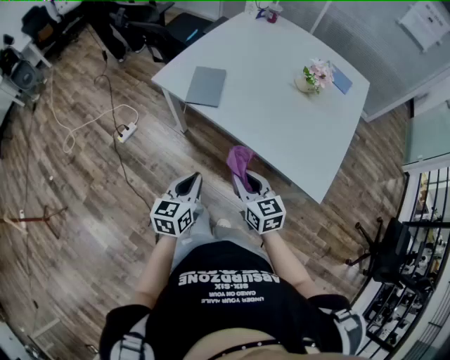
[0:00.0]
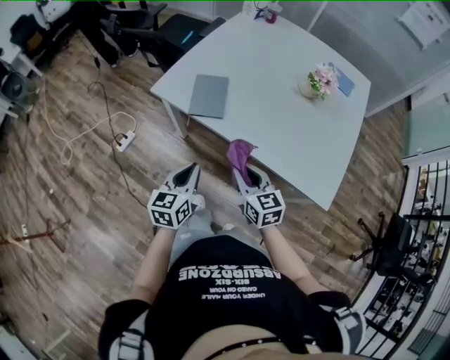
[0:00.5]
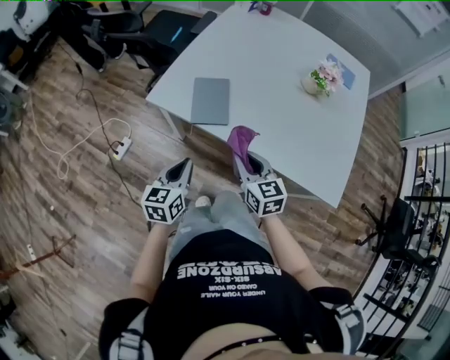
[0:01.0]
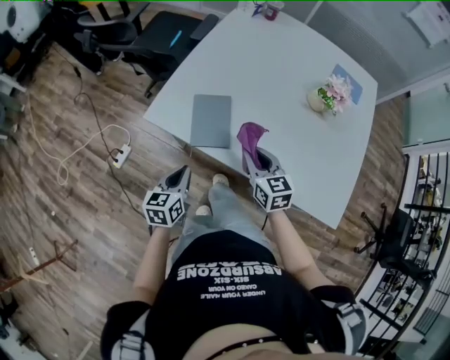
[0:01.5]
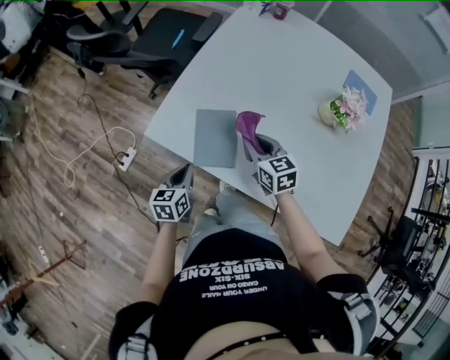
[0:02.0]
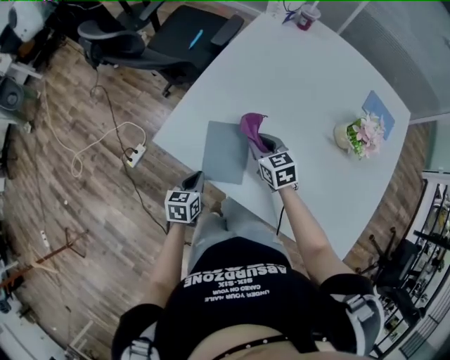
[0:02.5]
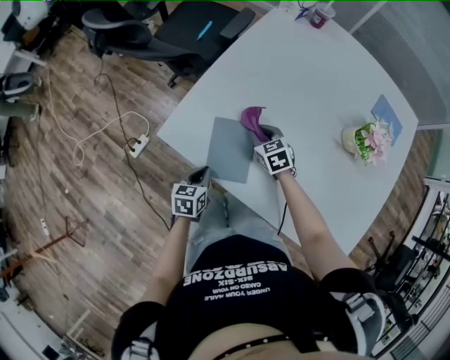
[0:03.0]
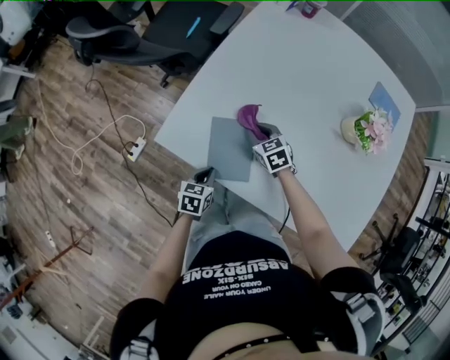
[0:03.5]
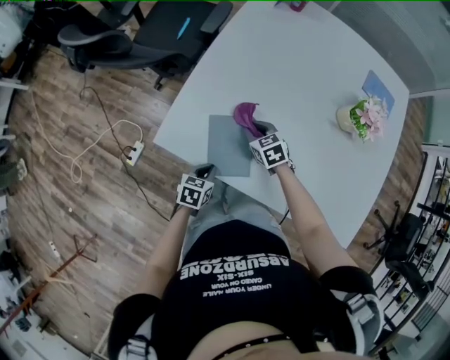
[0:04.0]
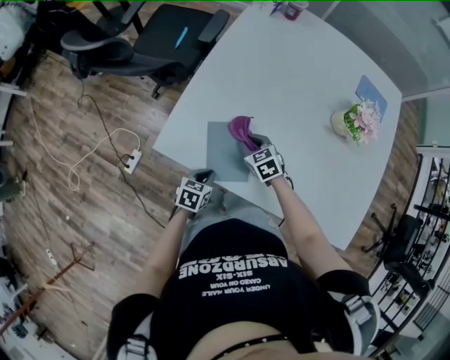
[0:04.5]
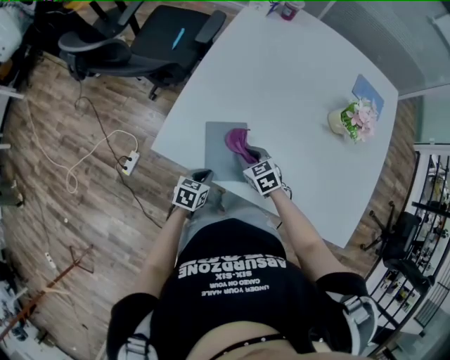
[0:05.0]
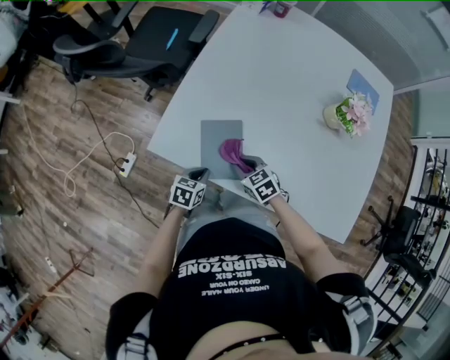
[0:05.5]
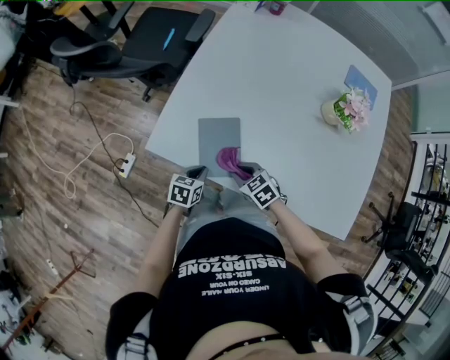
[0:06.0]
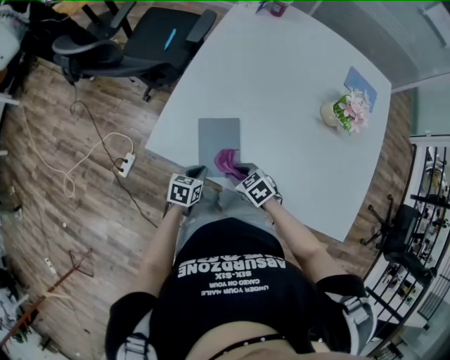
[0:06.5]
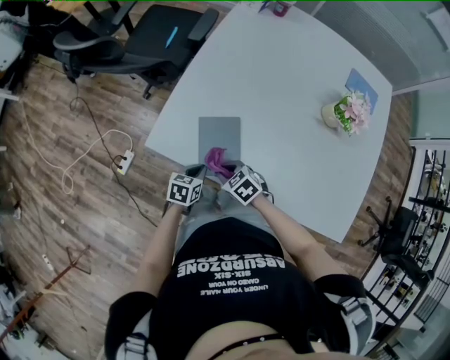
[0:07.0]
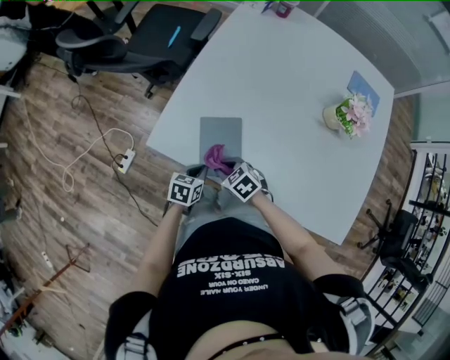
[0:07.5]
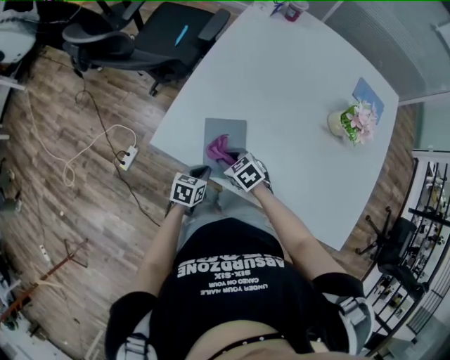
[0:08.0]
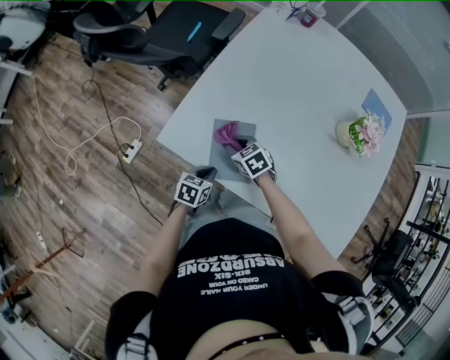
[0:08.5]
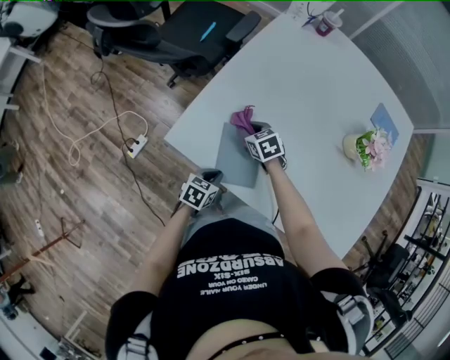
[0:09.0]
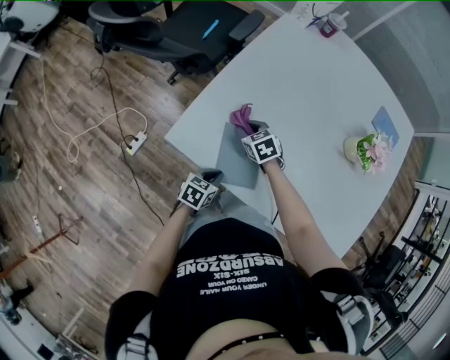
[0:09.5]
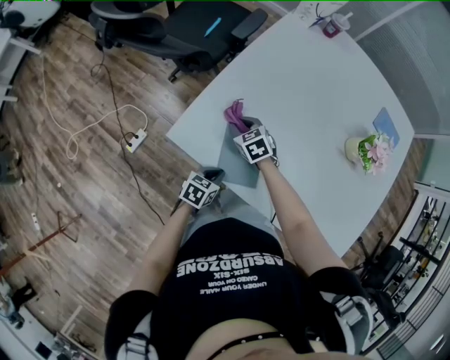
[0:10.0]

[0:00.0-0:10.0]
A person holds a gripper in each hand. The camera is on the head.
0:00.0 to 0:02.0: Both grippers move forward, roughly 40 cm.
0:02.0 to 0:04.0: The right gripper moves downward and forward, roughly 15 cm. The left gripper shifts some 10 cm downward, and turns by roughly 30 degrees.
0:04.0 to 0:06.0: The right gripper travels backward by some 15 cm.
0:06.0 to 0:08.0: The right gripper goes some 10 cm forward and to the left.
0:08.0 to 0:10.0: The right gripper heads forward, covering about 15 cm.

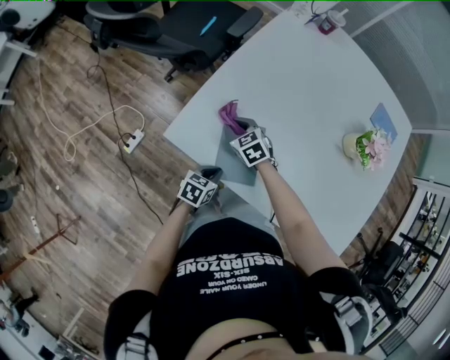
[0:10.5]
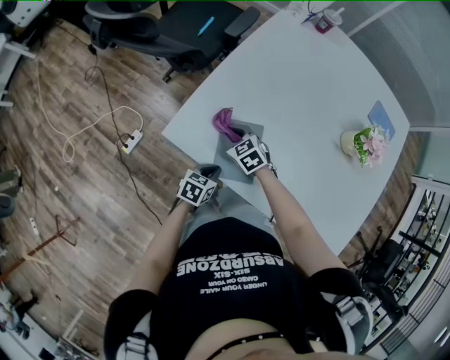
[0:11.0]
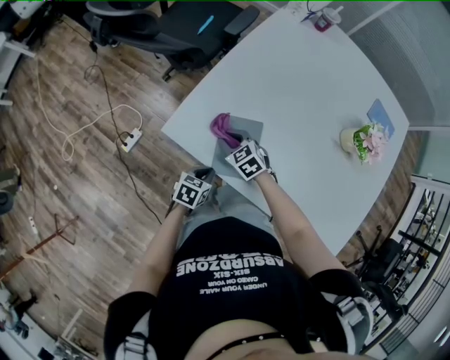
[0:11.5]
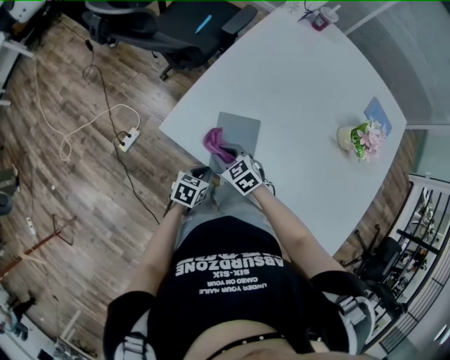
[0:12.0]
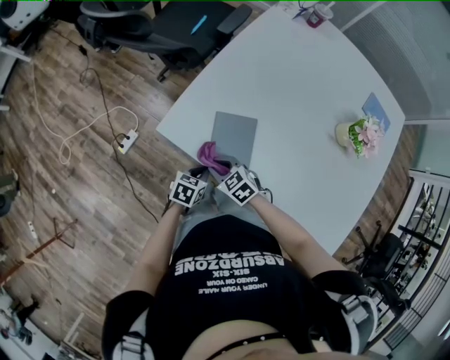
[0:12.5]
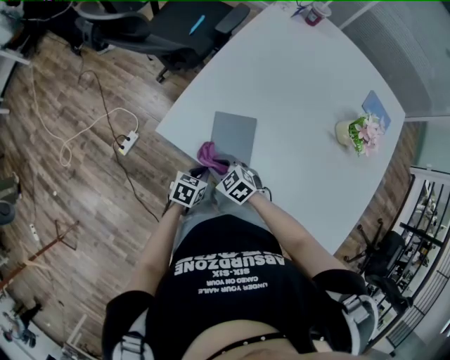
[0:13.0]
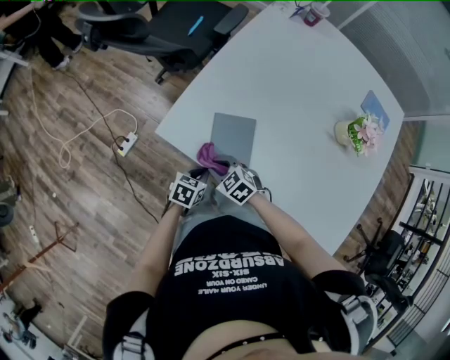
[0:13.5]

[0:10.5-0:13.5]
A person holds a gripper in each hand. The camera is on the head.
0:10.5 to 0:12.0: The right gripper goes roughly 15 cm backward.
0:12.0 to 0:13.5: There are only small adjustments of the grippers.

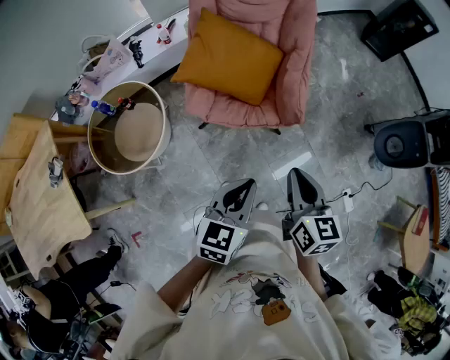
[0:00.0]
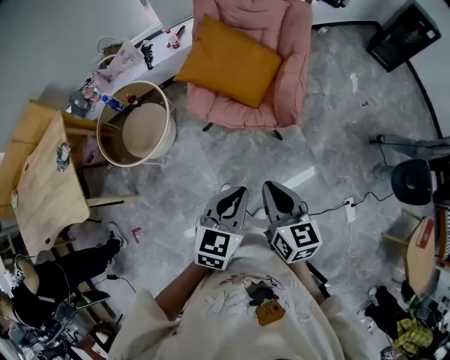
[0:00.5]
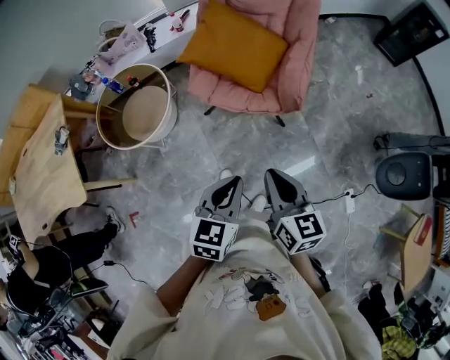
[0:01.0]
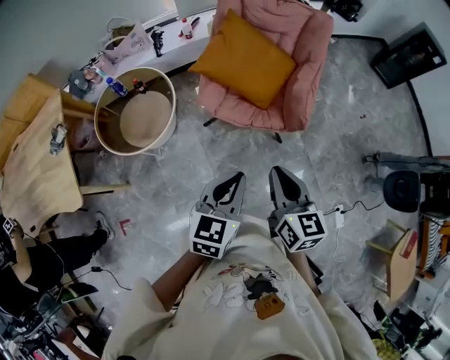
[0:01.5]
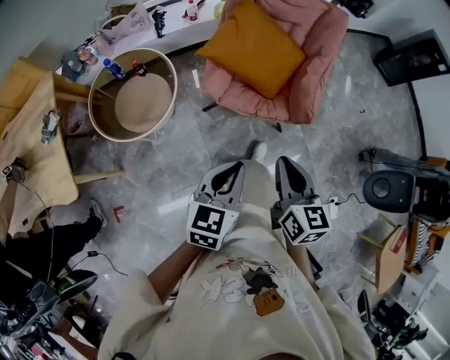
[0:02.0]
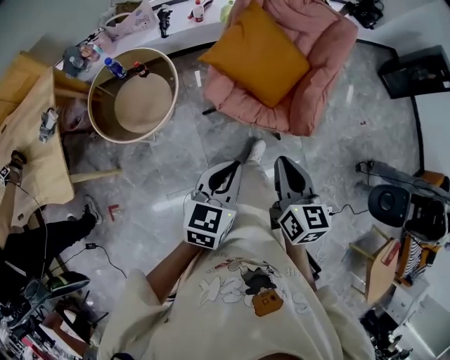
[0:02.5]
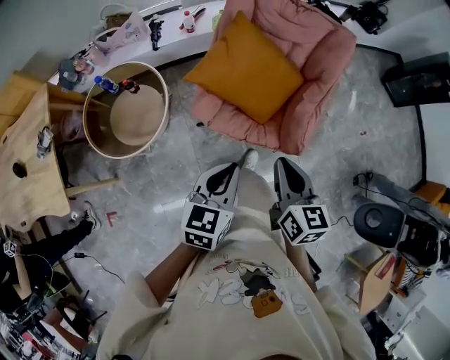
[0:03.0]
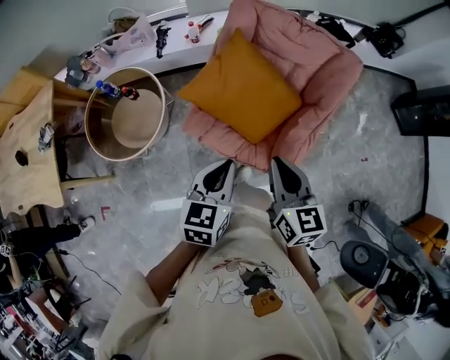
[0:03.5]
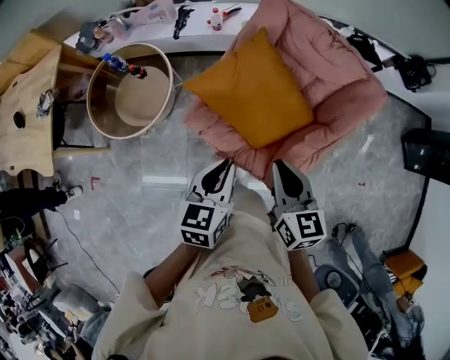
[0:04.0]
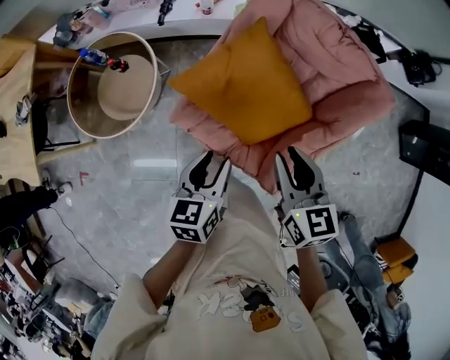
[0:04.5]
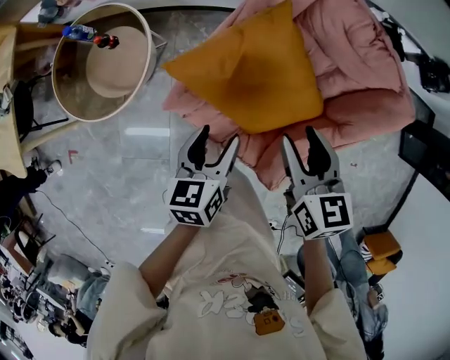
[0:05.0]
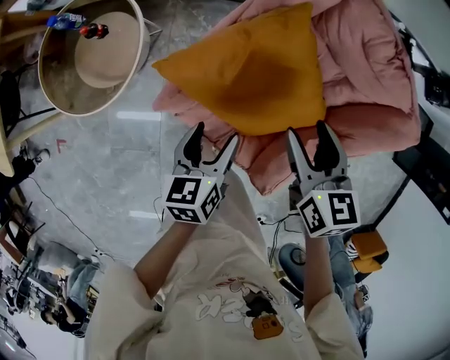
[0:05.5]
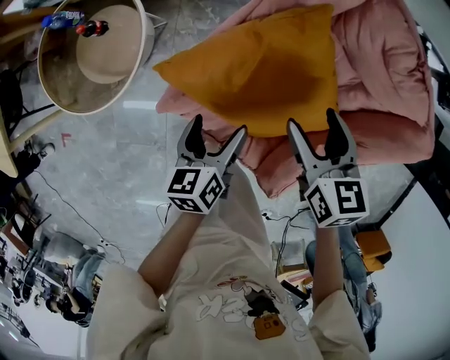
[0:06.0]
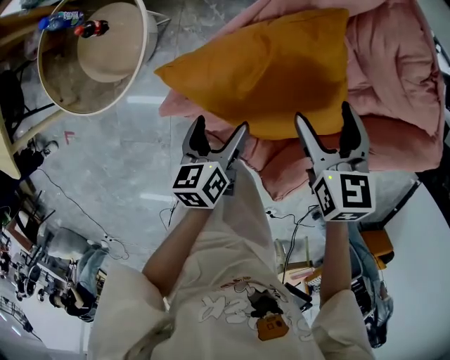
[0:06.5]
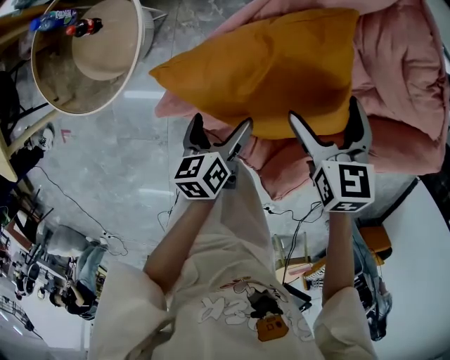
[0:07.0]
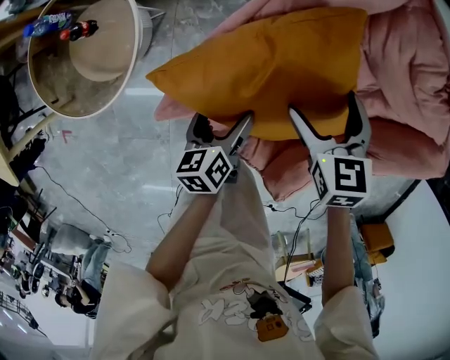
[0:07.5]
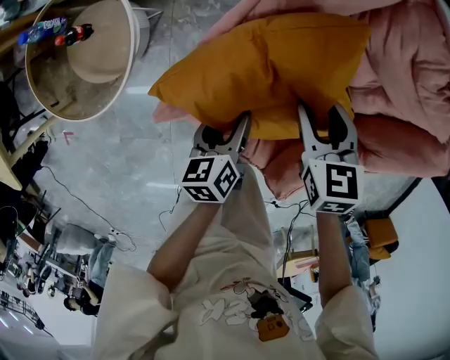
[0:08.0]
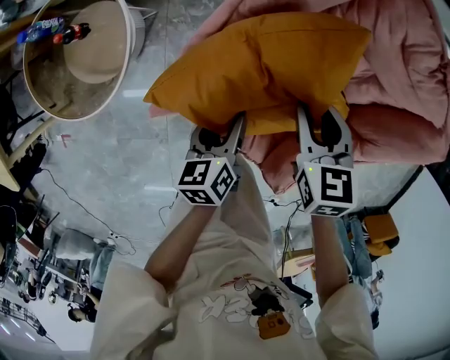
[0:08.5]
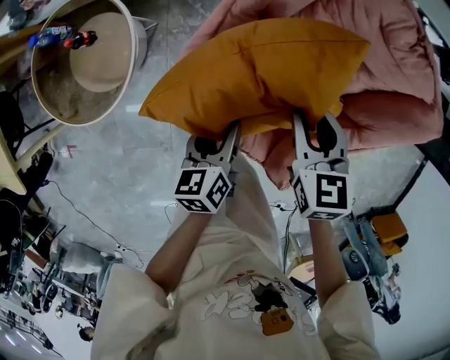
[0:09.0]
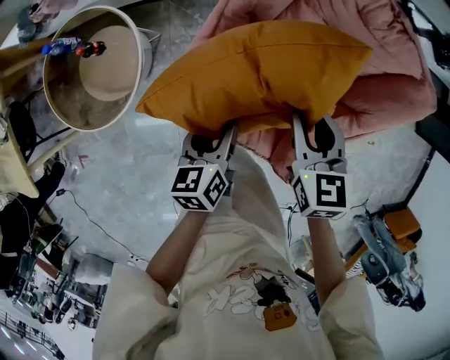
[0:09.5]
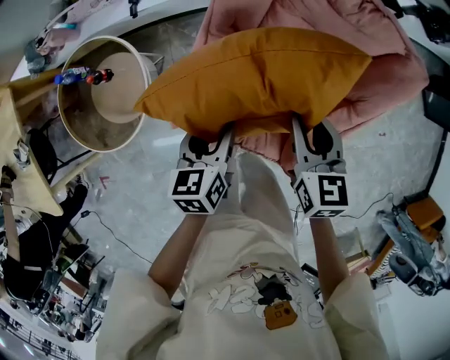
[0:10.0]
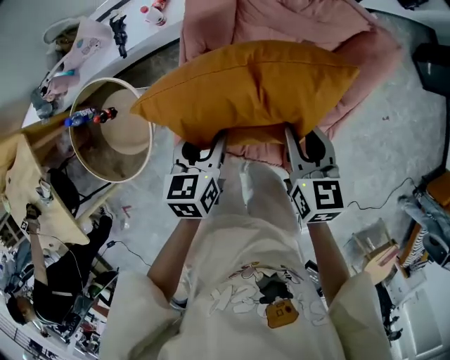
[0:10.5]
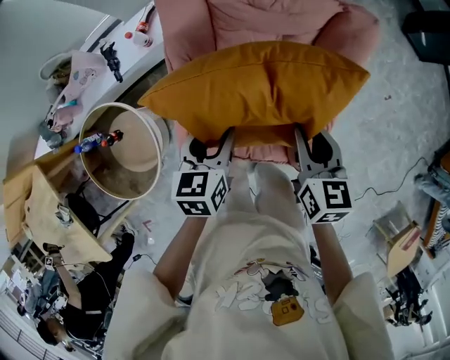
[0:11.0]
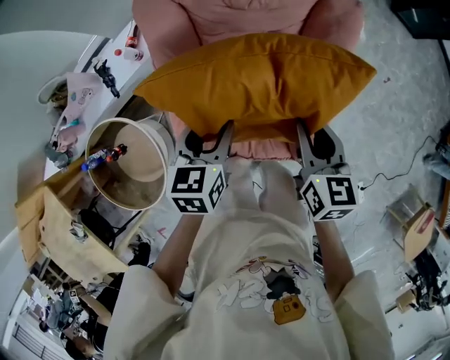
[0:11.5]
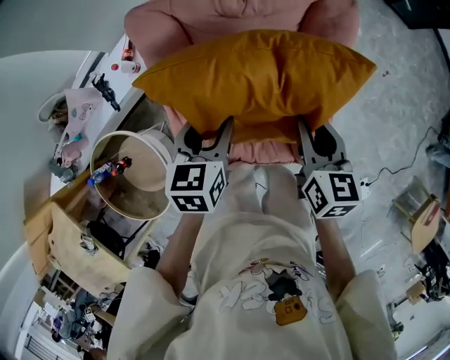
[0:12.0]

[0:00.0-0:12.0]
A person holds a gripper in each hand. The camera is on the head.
0:00.0 to 0:02.0: Both grippers travel together to the left, some 10 cm.
0:02.0 to 0:04.0: The right gripper shifts by some 40 cm, and rotates approximately 30 degrees. The left gripper moves some 35 cm, and changes its angle by some 30 degrees.
0:04.0 to 0:06.0: The left gripper is displaced downward and forward by some 30 cm, swivels approximately 30 degrees, and opens. The right gripper moves forward and downward, some 35 cm, rotates approximately 20 degrees, and opens up.
0:06.0 to 0:08.0: The grippers both shift downward by some 10 cm. The right gripper opens and closes again.
0:08.0 to 0:10.0: The right gripper shifts roughly 20 cm upward and backward, and rotates approximately 30 degrees, while the left gripper shifts approximately 20 cm upward, and turns by roughly 30 degrees.
0:10.0 to 0:12.0: The left gripper shifts by approximately 20 cm, and rotates some 40 degrees, while the right gripper changes place by some 15 cm, and turns by about 40 degrees.

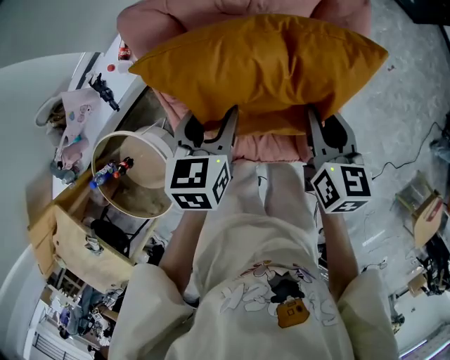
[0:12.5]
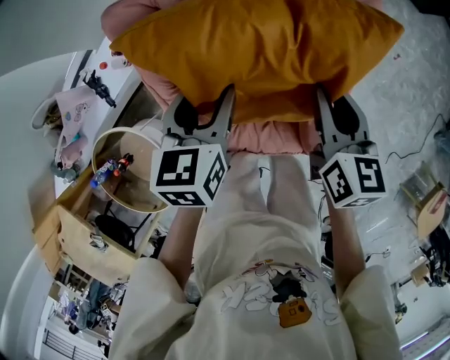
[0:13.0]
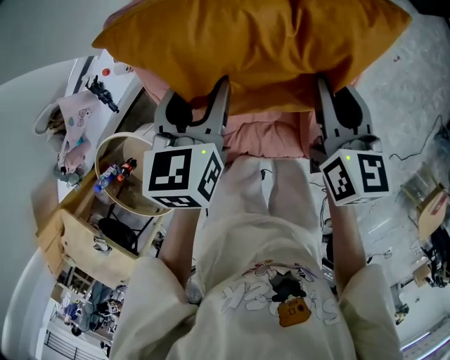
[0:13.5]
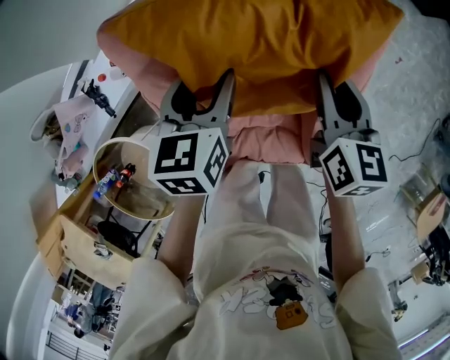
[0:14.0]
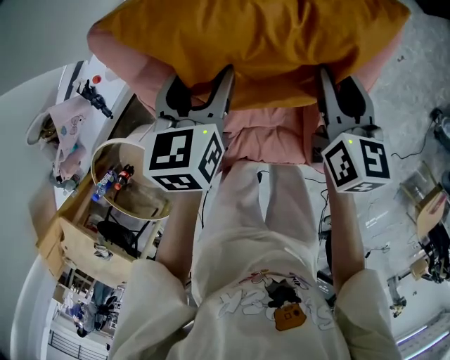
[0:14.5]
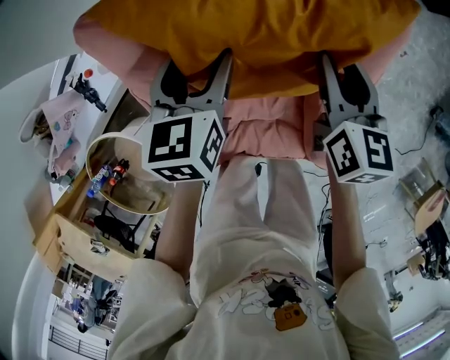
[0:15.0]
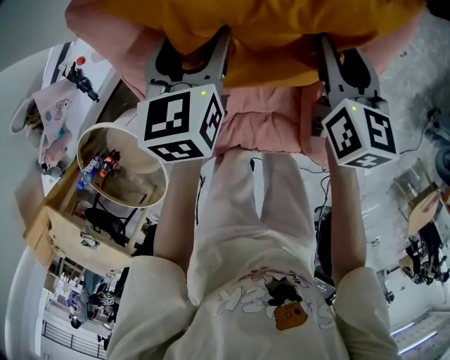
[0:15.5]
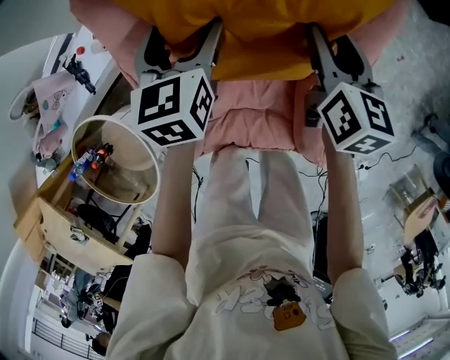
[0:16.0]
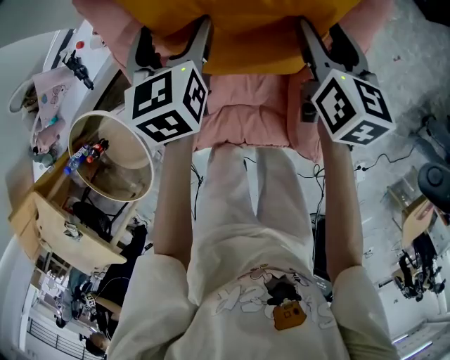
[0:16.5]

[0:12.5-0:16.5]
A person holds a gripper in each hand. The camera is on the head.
0:12.5 to 0:14.5: The two grippers go approximately 15 cm forward.
0:14.5 to 0:16.5: The grippers move only a little.
